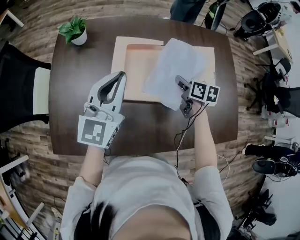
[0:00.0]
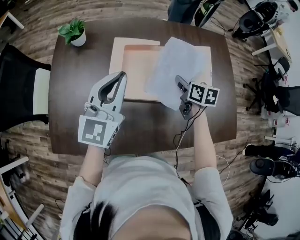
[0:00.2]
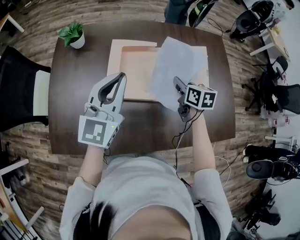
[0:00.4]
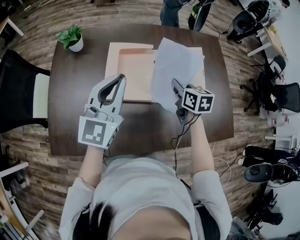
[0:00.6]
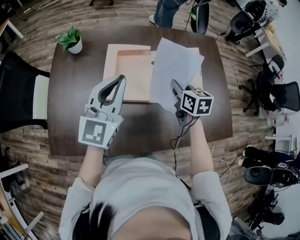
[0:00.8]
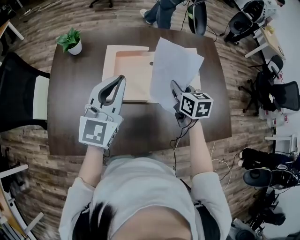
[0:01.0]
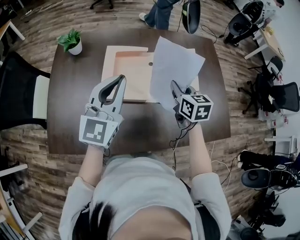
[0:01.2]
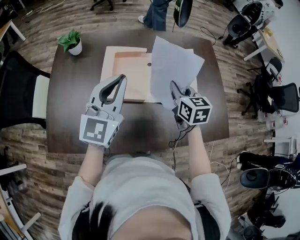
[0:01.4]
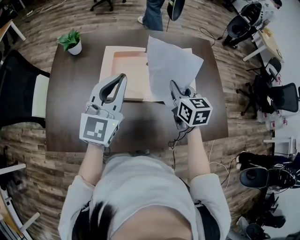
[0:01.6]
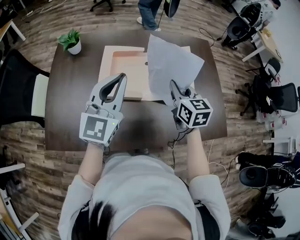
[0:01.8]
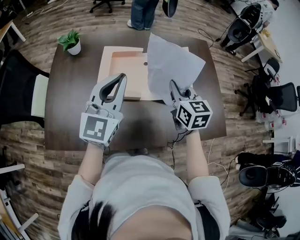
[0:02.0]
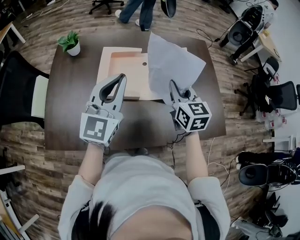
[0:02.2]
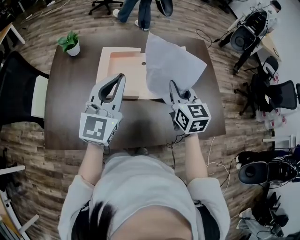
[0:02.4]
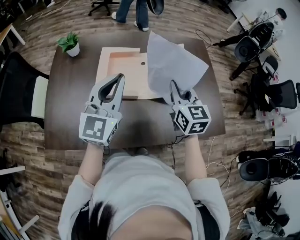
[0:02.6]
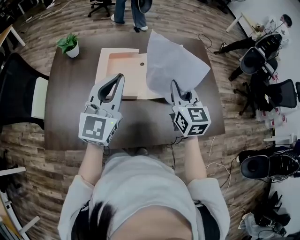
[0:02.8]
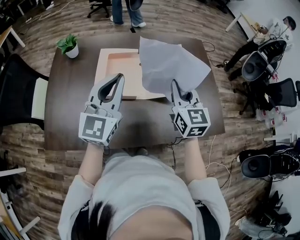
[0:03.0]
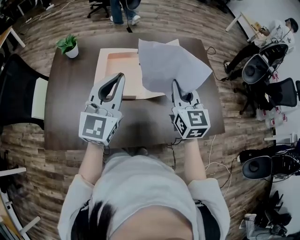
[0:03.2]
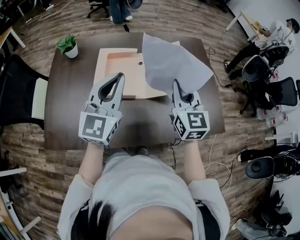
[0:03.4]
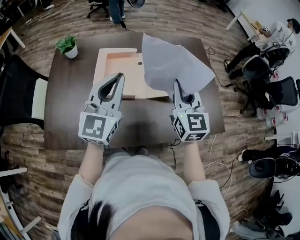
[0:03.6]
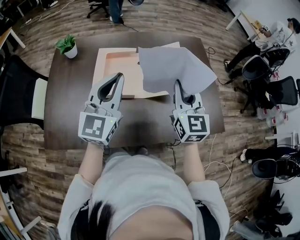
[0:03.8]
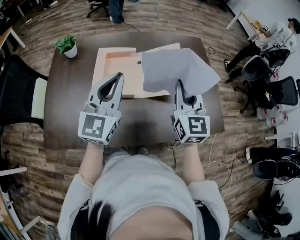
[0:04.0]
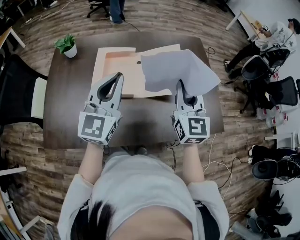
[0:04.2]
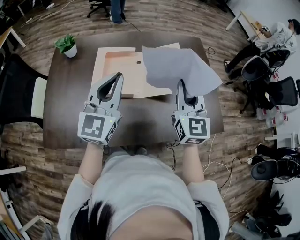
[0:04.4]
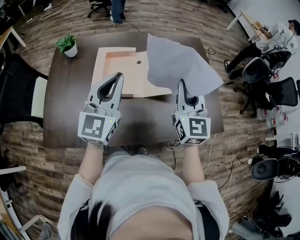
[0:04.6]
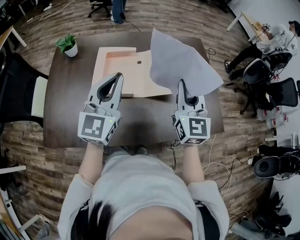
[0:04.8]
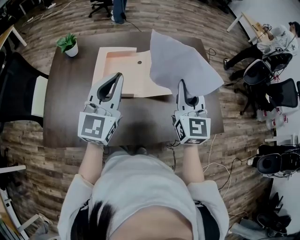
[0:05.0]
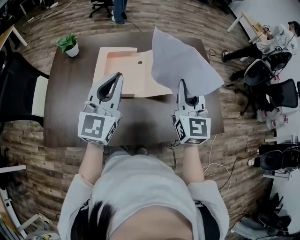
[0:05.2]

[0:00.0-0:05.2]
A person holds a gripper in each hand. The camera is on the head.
0:00.0 to 0:01.8: The left gripper goes about 10 cm to the right, backward and upward. The right gripper goes roughly 15 cm upward and backward, and changes its angle by approximately 30 degrees.
0:01.8 to 0:03.4: The right gripper heads upward and backward, covering approximately 10 cm, and changes its angle by about 20 degrees.
0:03.4 to 0:05.2: The grippers move only a little.

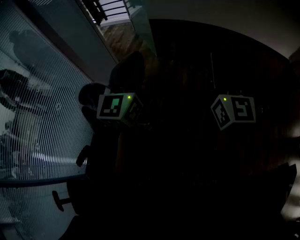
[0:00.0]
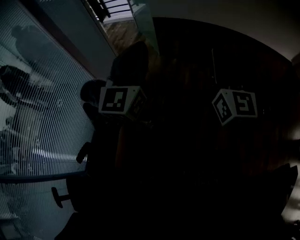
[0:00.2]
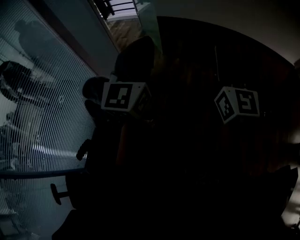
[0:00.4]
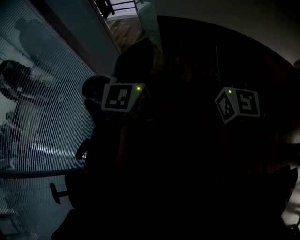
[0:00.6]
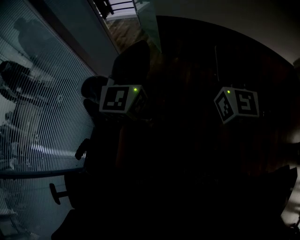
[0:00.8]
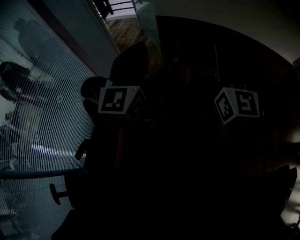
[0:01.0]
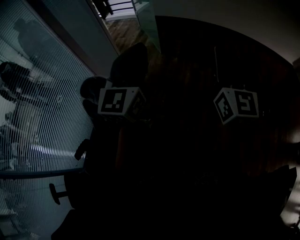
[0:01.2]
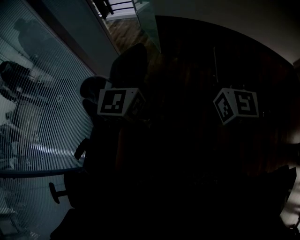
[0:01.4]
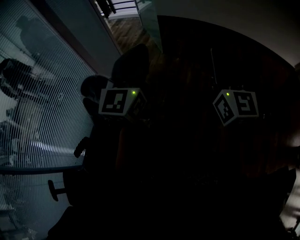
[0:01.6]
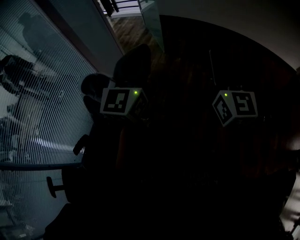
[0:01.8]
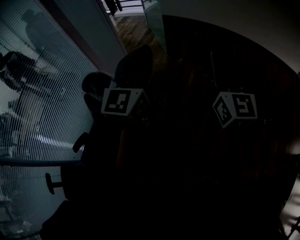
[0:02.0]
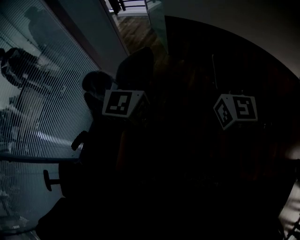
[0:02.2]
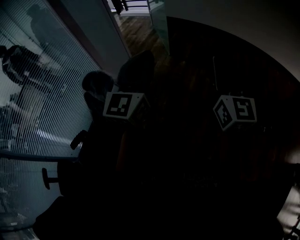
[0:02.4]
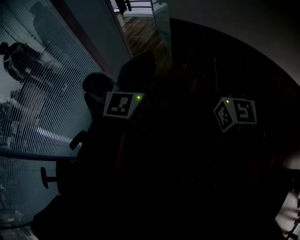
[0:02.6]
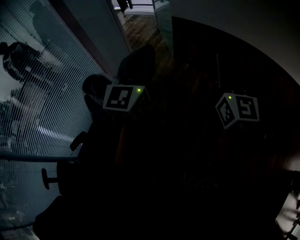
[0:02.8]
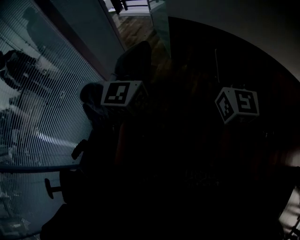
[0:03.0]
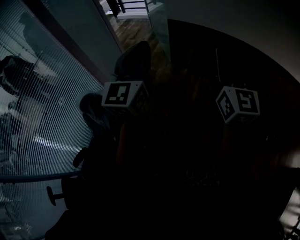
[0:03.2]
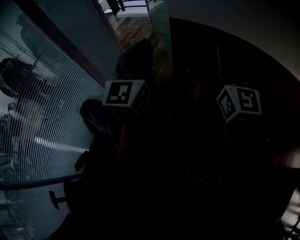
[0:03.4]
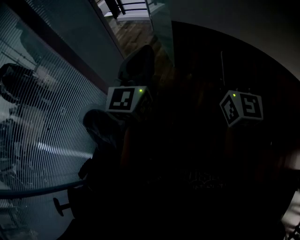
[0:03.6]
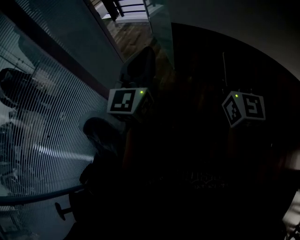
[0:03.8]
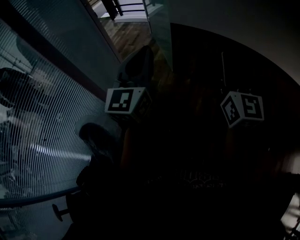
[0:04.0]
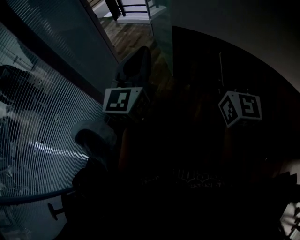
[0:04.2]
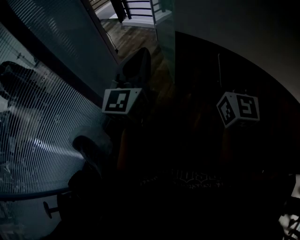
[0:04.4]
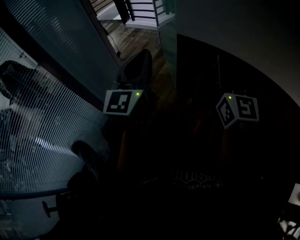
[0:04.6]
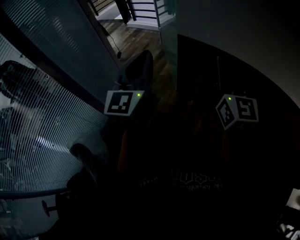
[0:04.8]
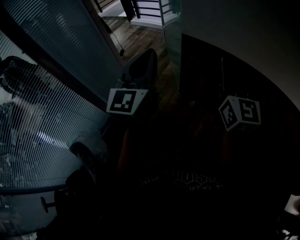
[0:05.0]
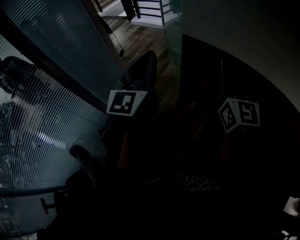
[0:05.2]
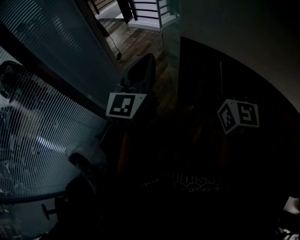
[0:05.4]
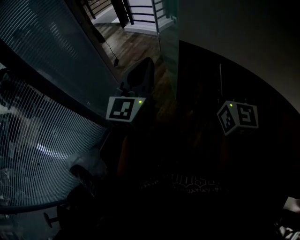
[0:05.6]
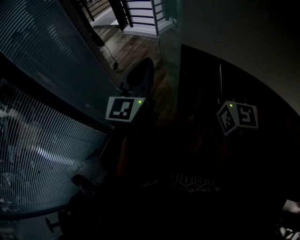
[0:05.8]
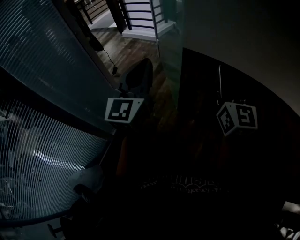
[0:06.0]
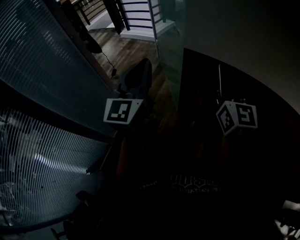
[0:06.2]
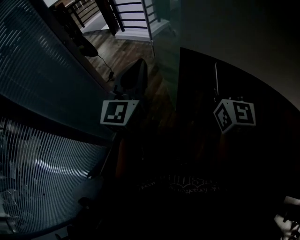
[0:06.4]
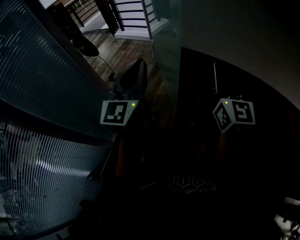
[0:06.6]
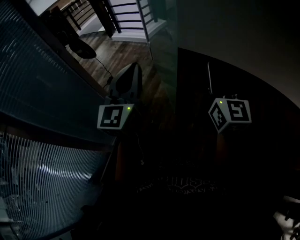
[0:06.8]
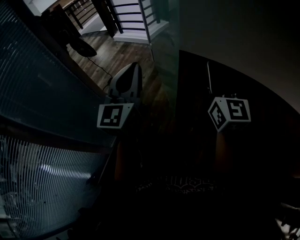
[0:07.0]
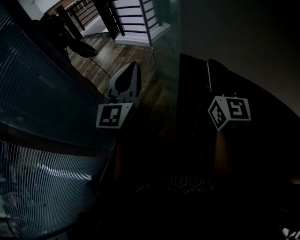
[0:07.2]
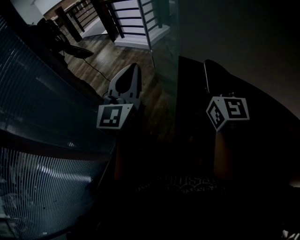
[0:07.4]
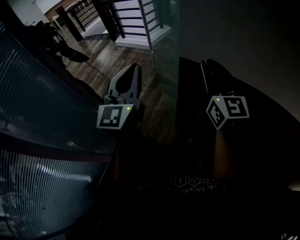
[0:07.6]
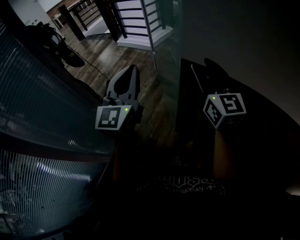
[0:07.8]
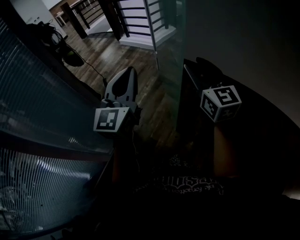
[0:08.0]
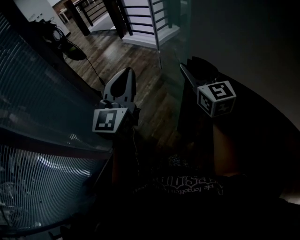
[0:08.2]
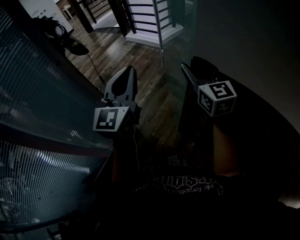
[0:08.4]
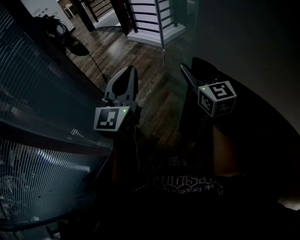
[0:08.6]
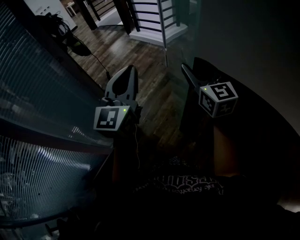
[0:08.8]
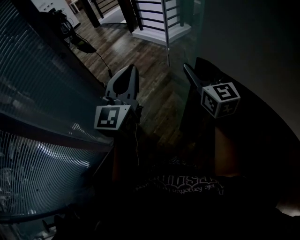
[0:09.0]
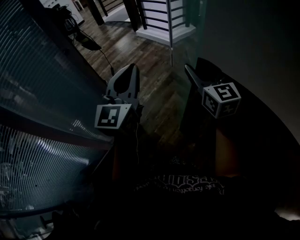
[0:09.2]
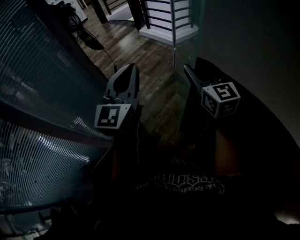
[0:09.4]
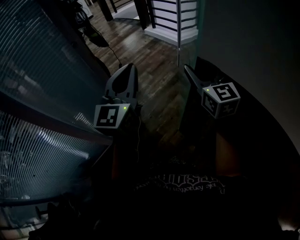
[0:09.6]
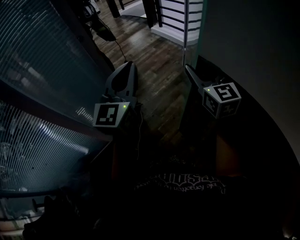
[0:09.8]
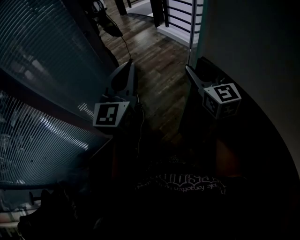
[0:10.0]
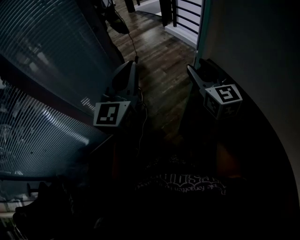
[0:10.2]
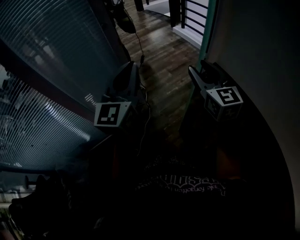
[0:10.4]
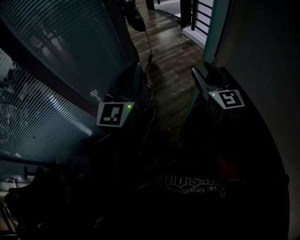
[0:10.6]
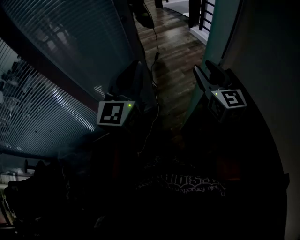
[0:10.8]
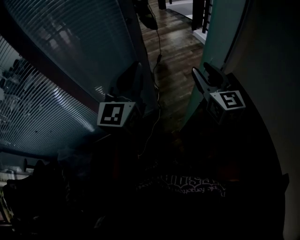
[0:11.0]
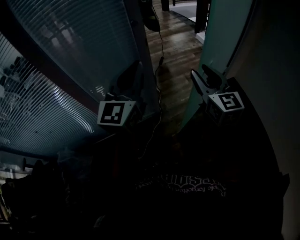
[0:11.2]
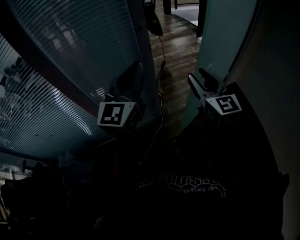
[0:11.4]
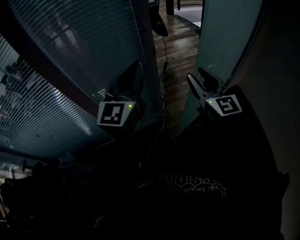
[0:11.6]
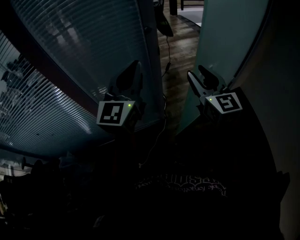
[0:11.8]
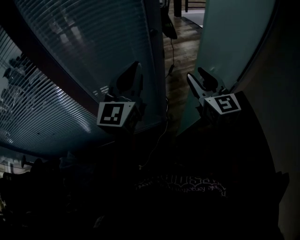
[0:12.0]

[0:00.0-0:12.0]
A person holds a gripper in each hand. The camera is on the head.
0:00.0 to 0:01.6: The grippers stay close to where they were, moving slightly.
0:01.6 to 0:03.0: The two grippers go some 15 cm forward.
0:03.0 to 0:04.4: The two grippers go about 35 cm forward.
0:04.4 to 0:06.0: The two grippers go approximately 25 cm forward.
0:06.0 to 0:07.6: Both grippers move forward, some 25 cm.
0:07.6 to 0:09.0: The left gripper changes place by about 5 cm; the right gripper moves forward and to the left, roughly 10 cm, changes its angle by roughly 20 degrees, and opens its fingers.
0:09.0 to 0:10.4: The grippers both shift to the left by roughly 10 cm. The left gripper turns by roughly 20 degrees.
0:10.4 to 0:12.0: Both grippers travel together to the left and forward, roughly 25 cm.

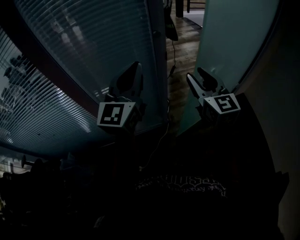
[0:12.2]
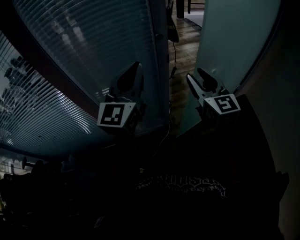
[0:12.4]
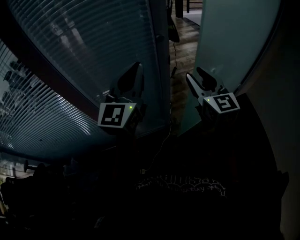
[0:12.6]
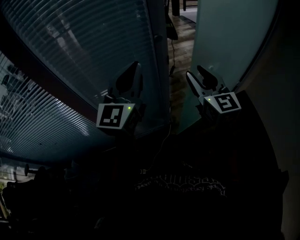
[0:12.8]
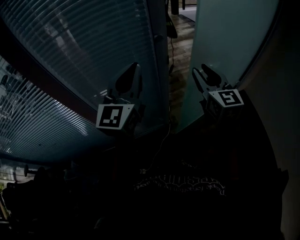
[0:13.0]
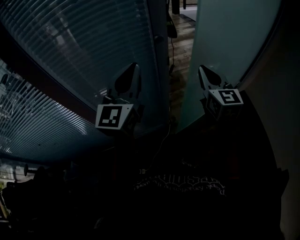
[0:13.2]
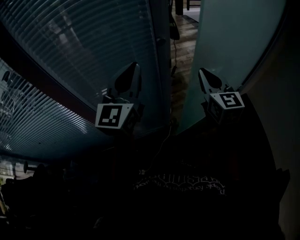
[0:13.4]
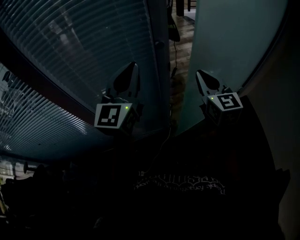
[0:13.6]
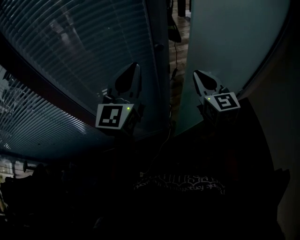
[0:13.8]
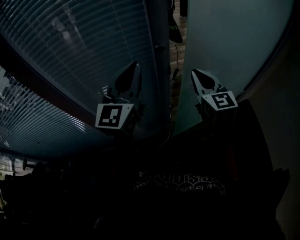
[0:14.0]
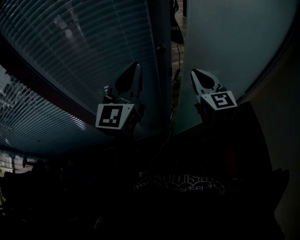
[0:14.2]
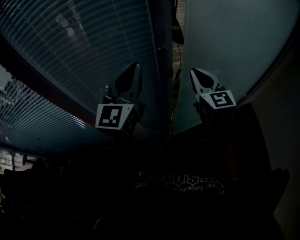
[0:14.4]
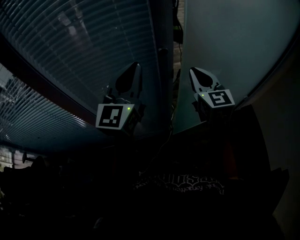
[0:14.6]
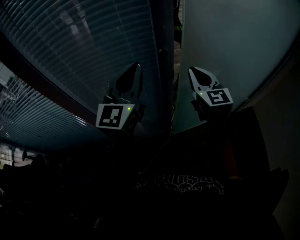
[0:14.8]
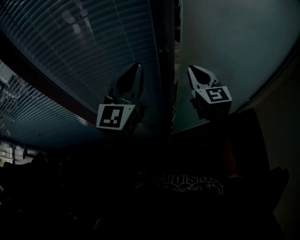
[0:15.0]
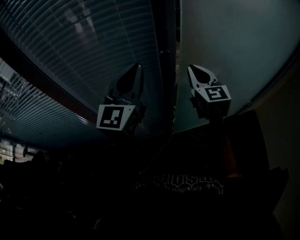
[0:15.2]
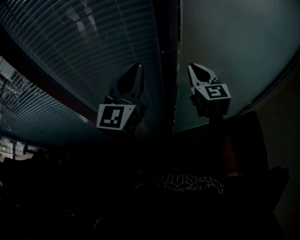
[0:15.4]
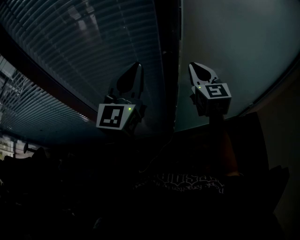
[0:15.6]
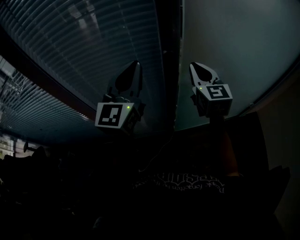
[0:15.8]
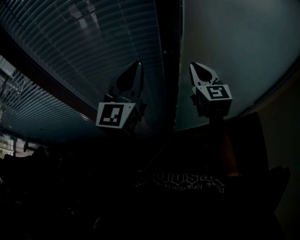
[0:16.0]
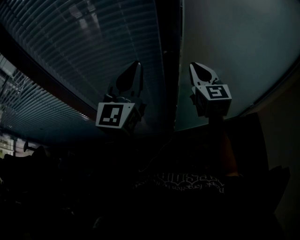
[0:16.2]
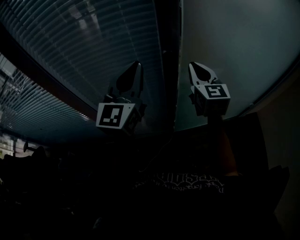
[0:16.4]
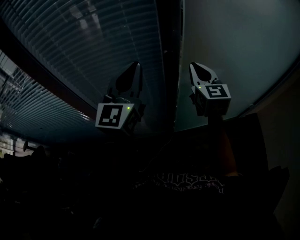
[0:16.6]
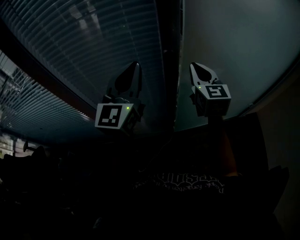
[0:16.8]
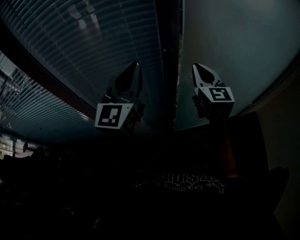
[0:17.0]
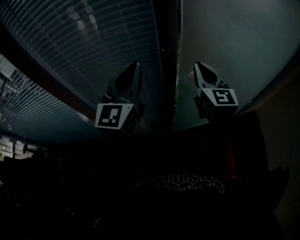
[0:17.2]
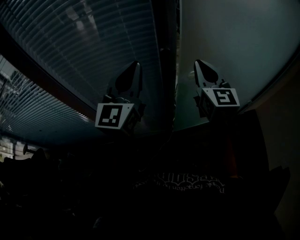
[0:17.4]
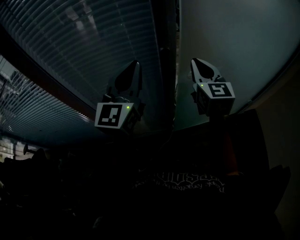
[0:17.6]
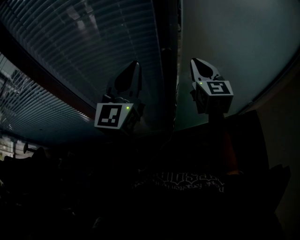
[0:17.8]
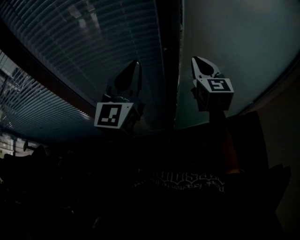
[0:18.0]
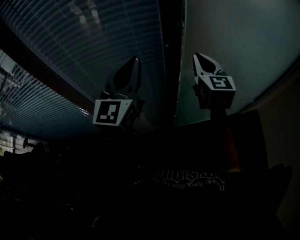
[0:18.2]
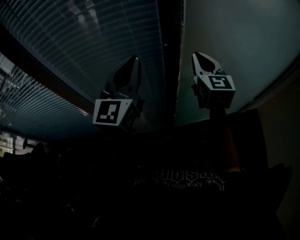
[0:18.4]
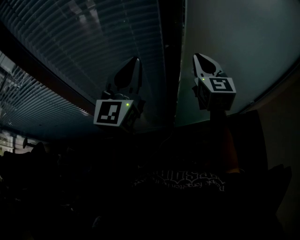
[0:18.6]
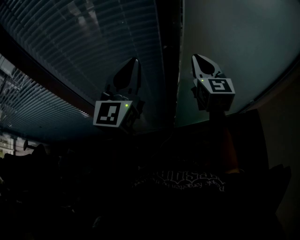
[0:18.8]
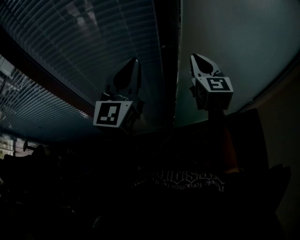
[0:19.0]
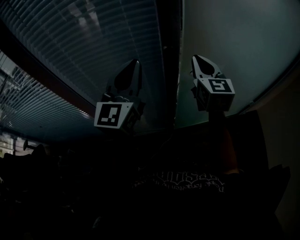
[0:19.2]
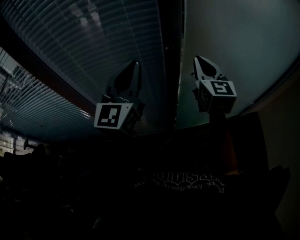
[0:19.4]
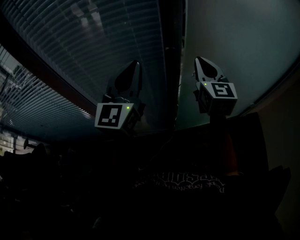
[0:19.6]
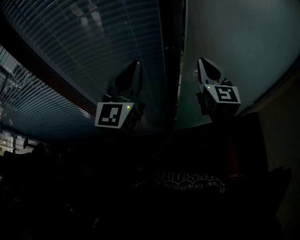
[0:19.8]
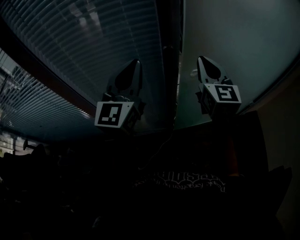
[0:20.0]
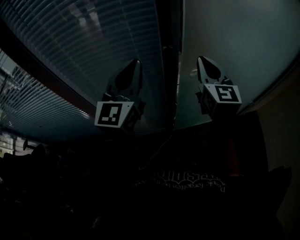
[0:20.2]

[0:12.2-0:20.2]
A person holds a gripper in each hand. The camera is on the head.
0:12.2 to 0:13.8: Both grippers move forward, roughly 10 cm. The right gripper closes up.
0:13.8 to 0:15.4: The right gripper moves forward, approximately 10 cm.
0:15.4 to 0:20.2: The grippers stay close to where they were, moving slightly.
